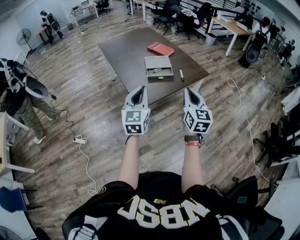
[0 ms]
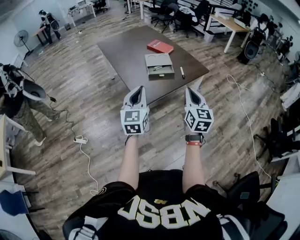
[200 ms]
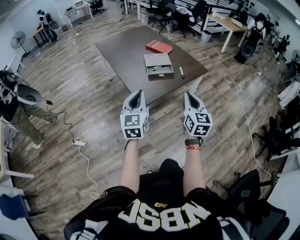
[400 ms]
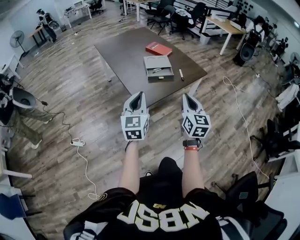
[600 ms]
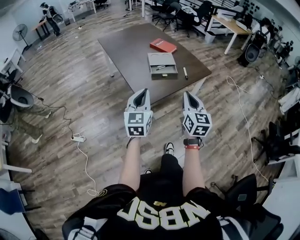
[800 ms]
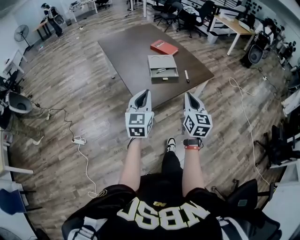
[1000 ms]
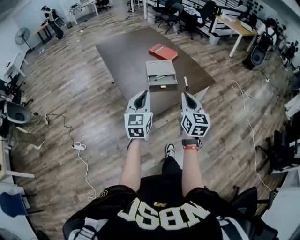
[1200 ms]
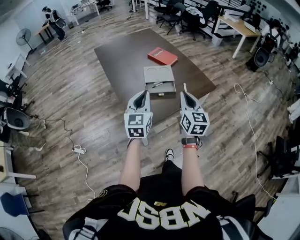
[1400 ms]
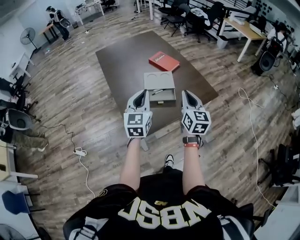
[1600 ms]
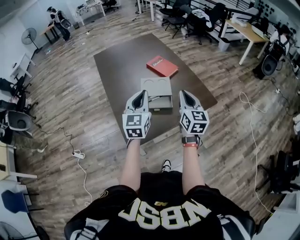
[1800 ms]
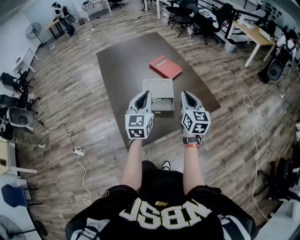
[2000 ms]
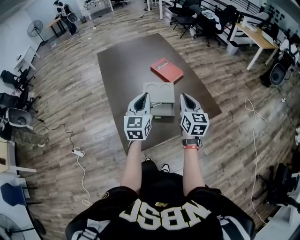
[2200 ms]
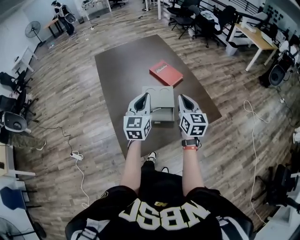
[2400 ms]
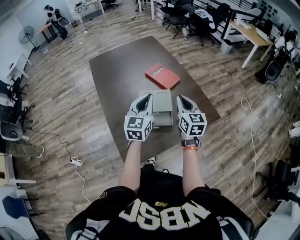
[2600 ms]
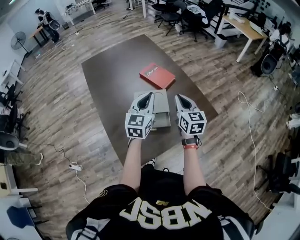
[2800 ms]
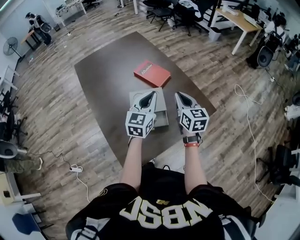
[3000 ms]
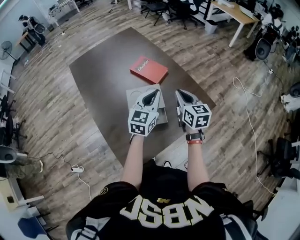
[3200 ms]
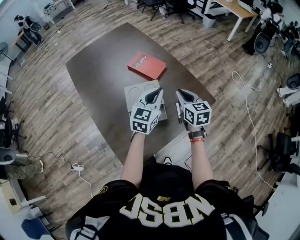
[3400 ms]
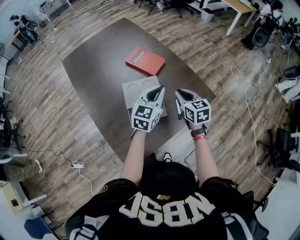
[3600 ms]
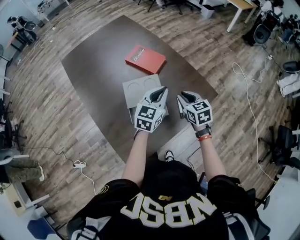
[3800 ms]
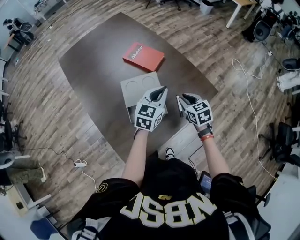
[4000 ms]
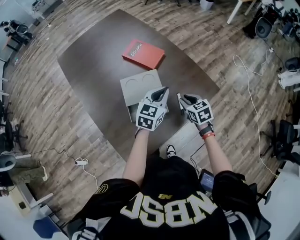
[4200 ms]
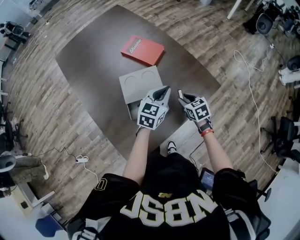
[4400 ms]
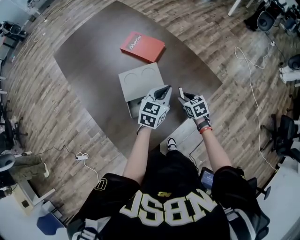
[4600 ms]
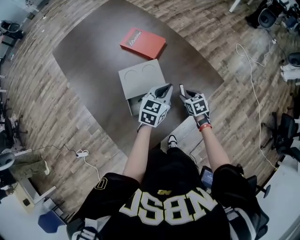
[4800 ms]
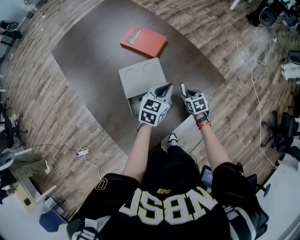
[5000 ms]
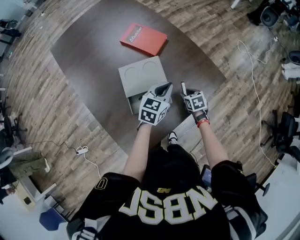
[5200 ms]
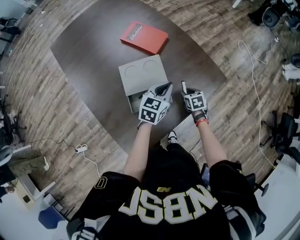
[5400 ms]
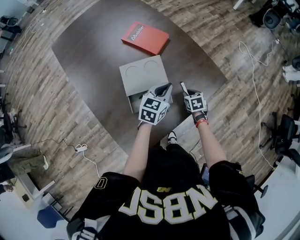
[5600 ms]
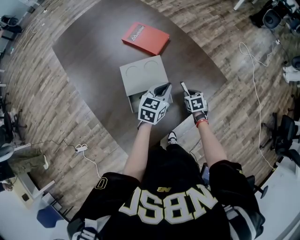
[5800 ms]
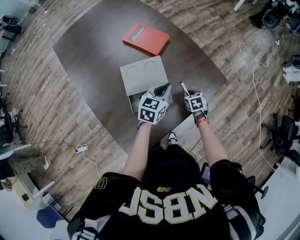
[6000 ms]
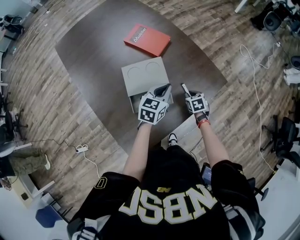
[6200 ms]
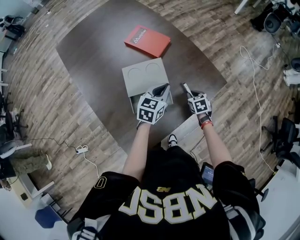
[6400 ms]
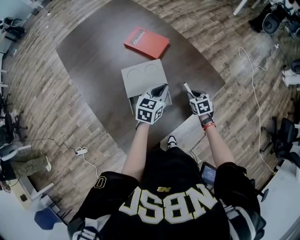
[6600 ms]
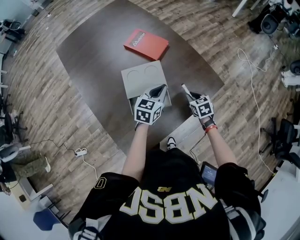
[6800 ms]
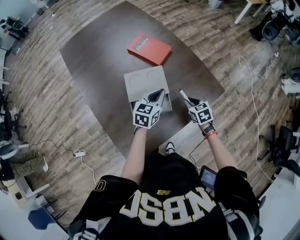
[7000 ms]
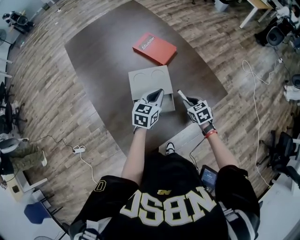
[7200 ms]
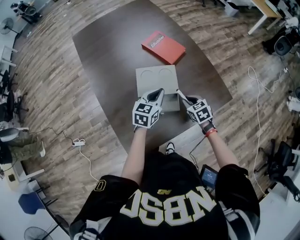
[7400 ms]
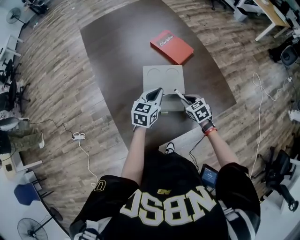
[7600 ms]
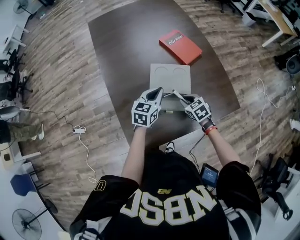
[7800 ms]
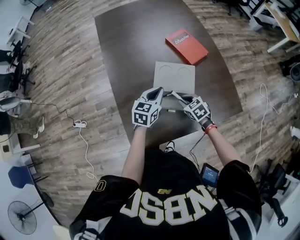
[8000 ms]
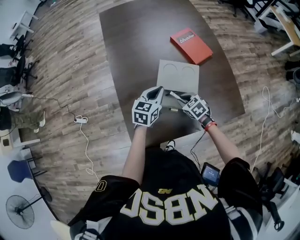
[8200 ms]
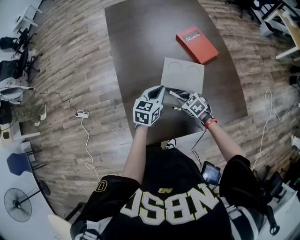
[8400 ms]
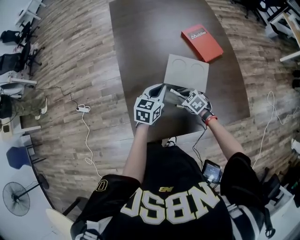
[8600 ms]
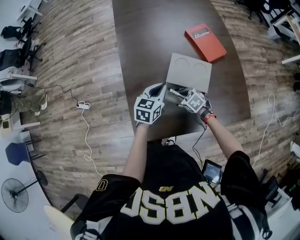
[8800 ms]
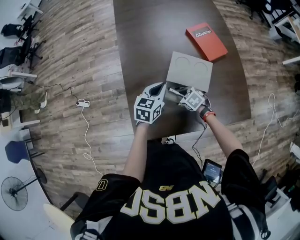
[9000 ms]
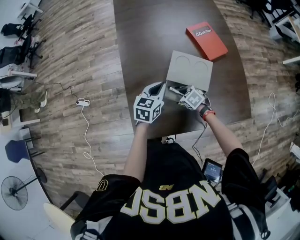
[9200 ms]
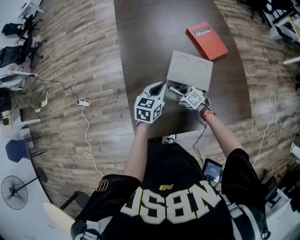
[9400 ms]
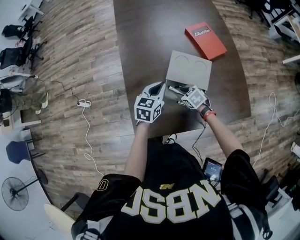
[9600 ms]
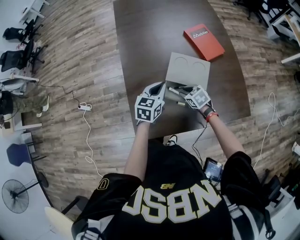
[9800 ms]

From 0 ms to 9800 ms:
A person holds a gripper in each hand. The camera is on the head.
From 0 ms to 1400 ms: The two grippers go some 20 cm forward.
From 1400 ms to 2800 ms: Both grippers travel together forward, some 25 cm.
From 2800 ms to 4200 ms: The right gripper travels downward by about 20 cm, tips its fingers downward by roughly 30 degrees, and opens up; the left gripper shifts some 15 cm downward and to the right, and swivels approximately 30 degrees.
From 4200 ms to 5600 ms: The right gripper is displaced downward by about 15 cm, and changes its angle by roughly 20 degrees. The left gripper shifts some 10 cm downward.
From 5600 ms to 7000 ms: The right gripper shifts roughly 10 cm upward.
From 7000 ms to 8400 ms: The right gripper ends up some 20 cm from where it was, and turns by approximately 50 degrees; the left gripper moves about 15 cm, and swivels approximately 20 degrees.
From 8400 ms to 9800 ms: There are only small adjustments of the grippers.

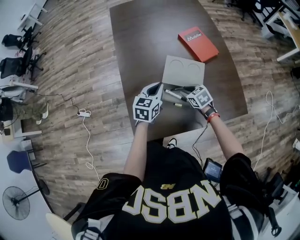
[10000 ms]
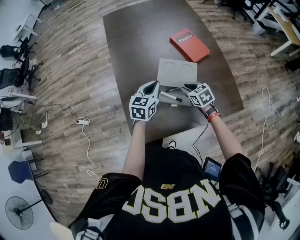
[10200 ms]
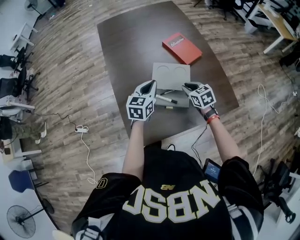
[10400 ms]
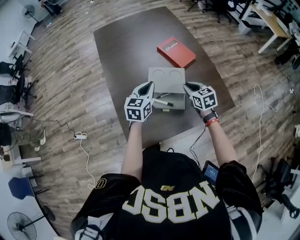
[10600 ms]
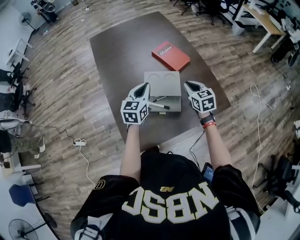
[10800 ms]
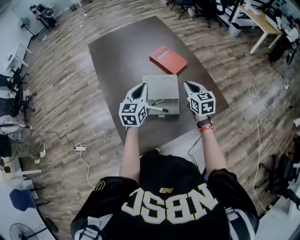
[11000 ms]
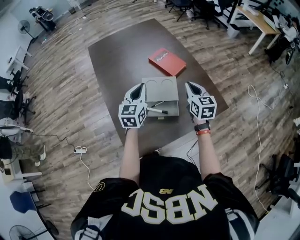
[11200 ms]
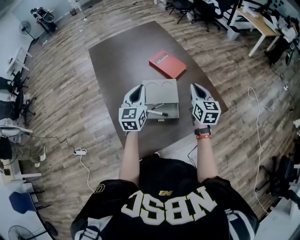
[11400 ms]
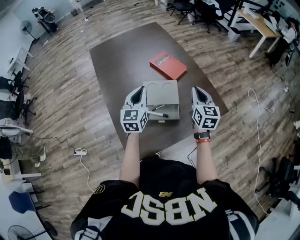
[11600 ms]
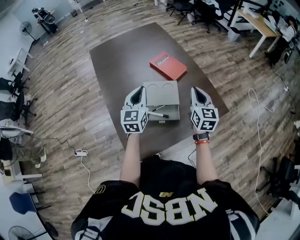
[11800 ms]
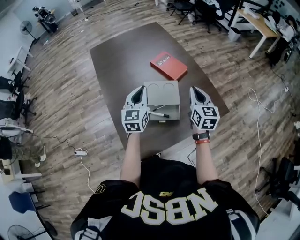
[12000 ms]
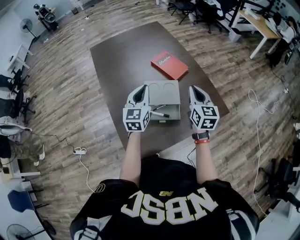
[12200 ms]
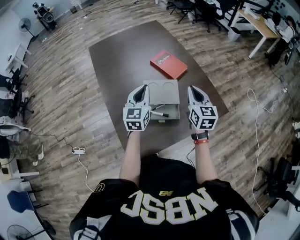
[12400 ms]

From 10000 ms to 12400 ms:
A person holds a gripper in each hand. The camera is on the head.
From 10000 ms to 11200 ms: The right gripper heads upward and to the right, covering approximately 25 cm, tilts its fingers approximately 30 degrees upward, and closes its fingers, while the left gripper goes about 15 cm upward.
From 11200 ms to 12400 ms: The grippers stay close to where they were, moving slightly.

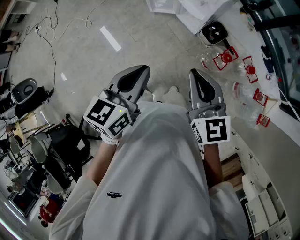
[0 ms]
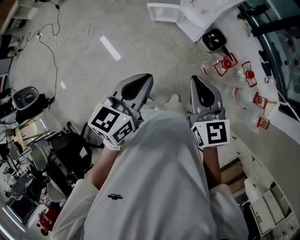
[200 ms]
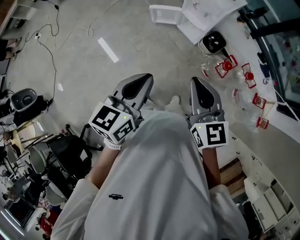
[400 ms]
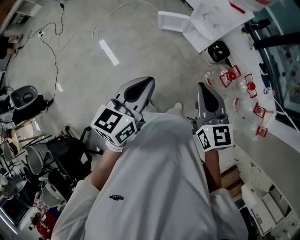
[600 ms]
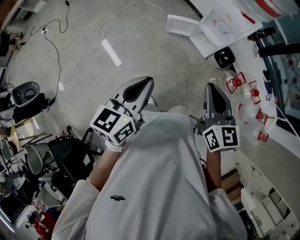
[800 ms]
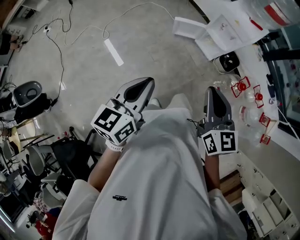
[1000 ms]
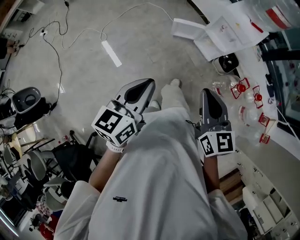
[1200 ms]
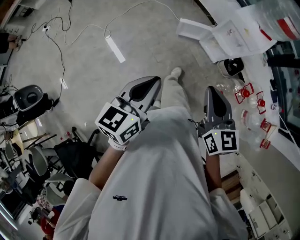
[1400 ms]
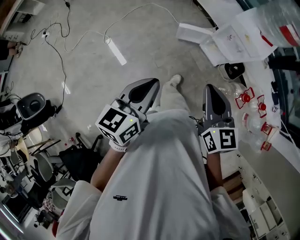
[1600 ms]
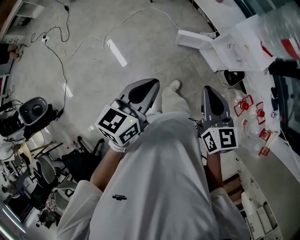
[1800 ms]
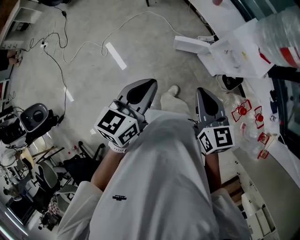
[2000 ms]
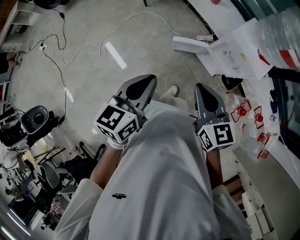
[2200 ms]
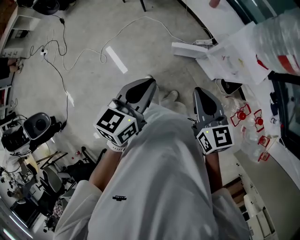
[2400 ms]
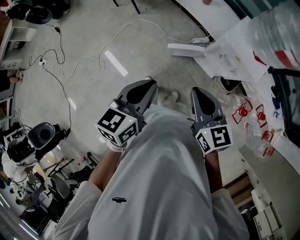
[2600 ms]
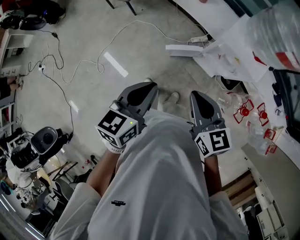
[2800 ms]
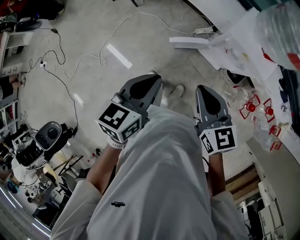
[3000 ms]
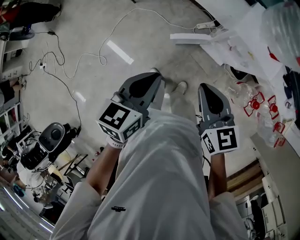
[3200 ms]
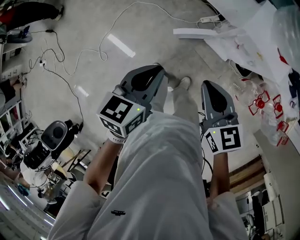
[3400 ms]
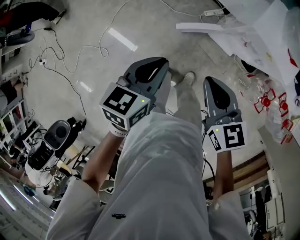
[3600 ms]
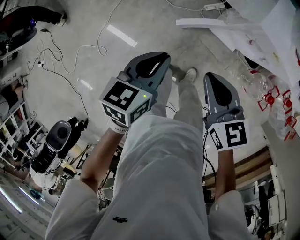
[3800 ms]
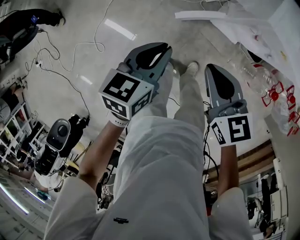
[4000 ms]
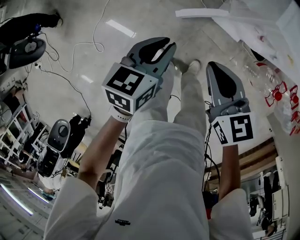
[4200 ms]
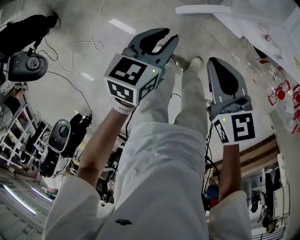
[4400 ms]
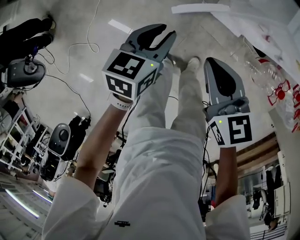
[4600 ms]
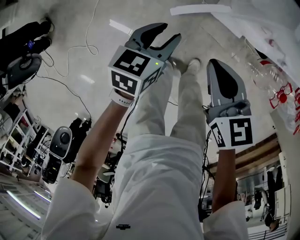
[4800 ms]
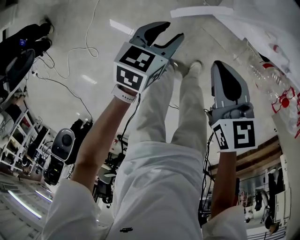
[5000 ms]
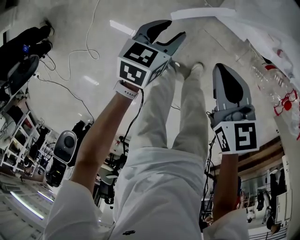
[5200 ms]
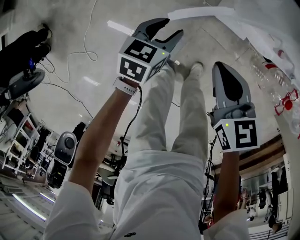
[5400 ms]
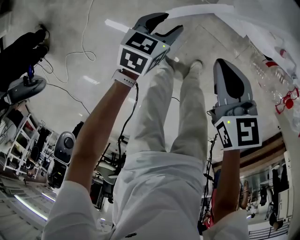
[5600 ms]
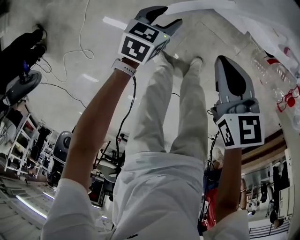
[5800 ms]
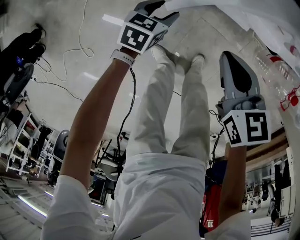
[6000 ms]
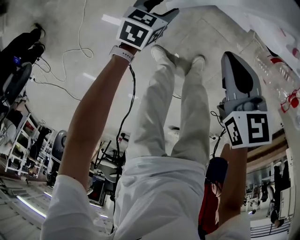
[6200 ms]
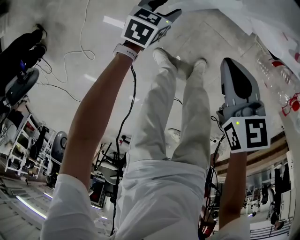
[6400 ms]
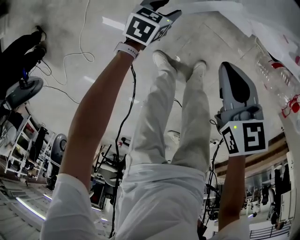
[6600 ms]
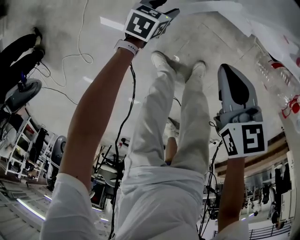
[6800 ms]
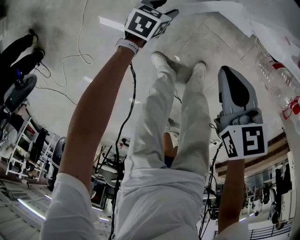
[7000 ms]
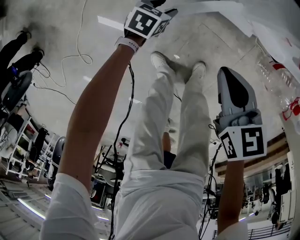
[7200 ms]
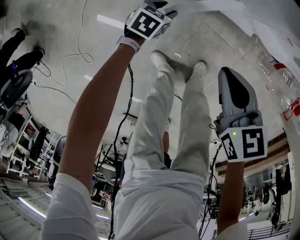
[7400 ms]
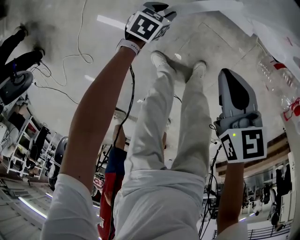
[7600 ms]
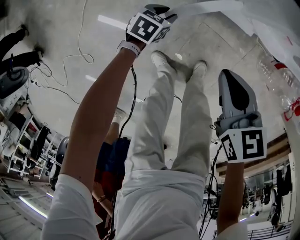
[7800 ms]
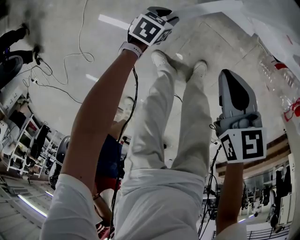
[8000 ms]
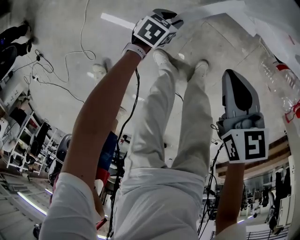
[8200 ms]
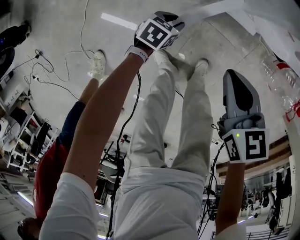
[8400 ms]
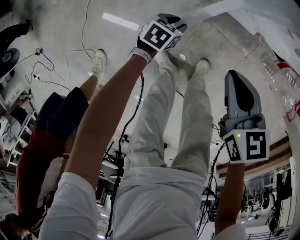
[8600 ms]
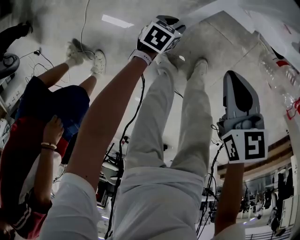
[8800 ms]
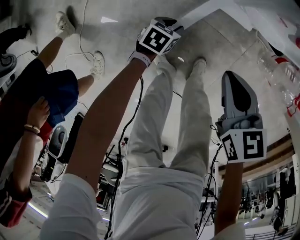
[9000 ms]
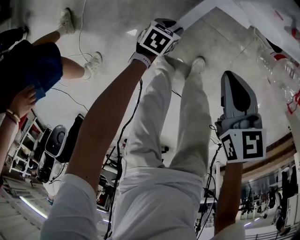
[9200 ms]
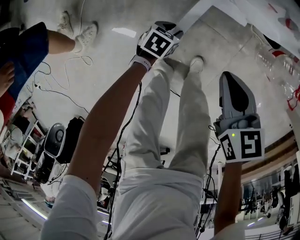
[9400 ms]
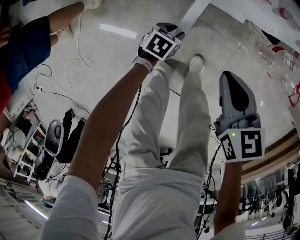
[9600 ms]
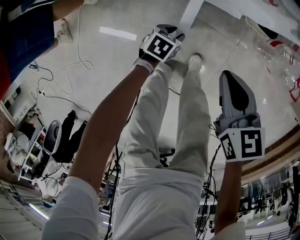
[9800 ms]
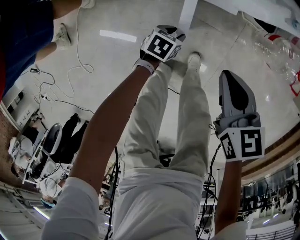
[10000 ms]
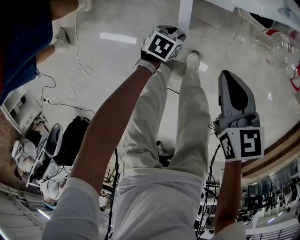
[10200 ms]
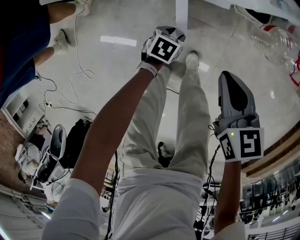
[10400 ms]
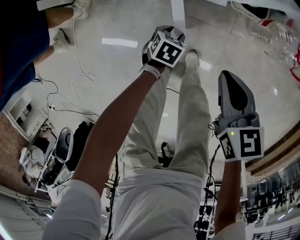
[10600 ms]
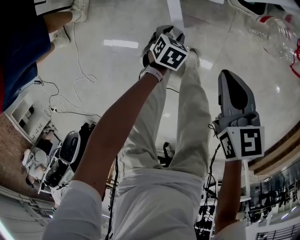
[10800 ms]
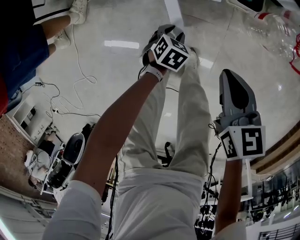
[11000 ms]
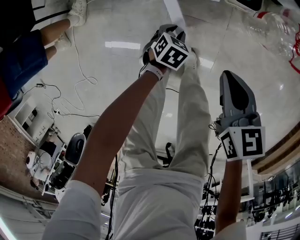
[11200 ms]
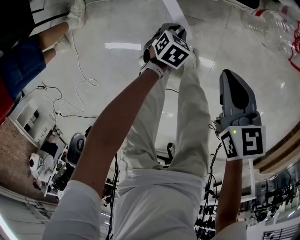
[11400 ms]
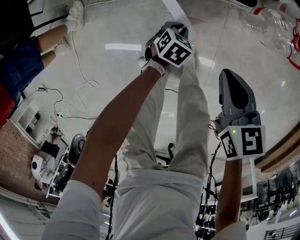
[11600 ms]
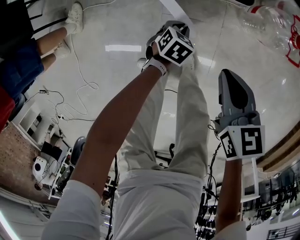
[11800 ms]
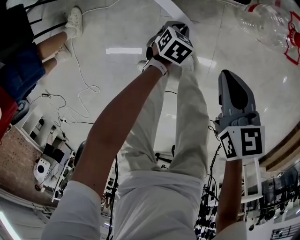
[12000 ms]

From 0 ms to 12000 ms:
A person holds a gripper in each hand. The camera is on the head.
From 0 ms to 1600 ms: Both grippers travel together to the left and forward, about 20 cm.
From 1600 ms to 3000 ms: The two grippers go approximately 20 cm forward.
From 3000 ms to 4400 ms: The left gripper is displaced downward and forward by roughly 20 cm; the right gripper is displaced downward, forward and to the left by about 15 cm.
From 4400 ms to 6000 ms: The left gripper is displaced downward by some 25 cm, turns by some 20 degrees, and opens its fingers. The right gripper is displaced downward by roughly 10 cm.
From 6000 ms to 7600 ms: The left gripper travels downward by some 10 cm.
From 7600 ms to 9000 ms: The left gripper goes approximately 10 cm to the right and backward. Meanwhile the right gripper is displaced to the right by about 5 cm.
From 9000 ms to 10400 ms: The two grippers go about 10 cm to the right.
From 10400 ms to 12000 ms: The left gripper moves to the right and forward, some 10 cm, rotates some 20 degrees, and closes up, while the right gripper heads to the right, covering about 10 cm.
